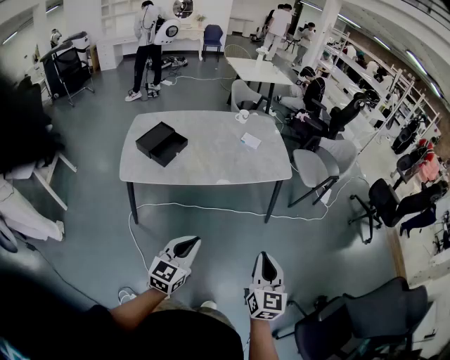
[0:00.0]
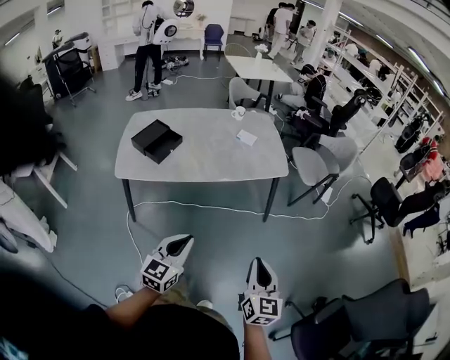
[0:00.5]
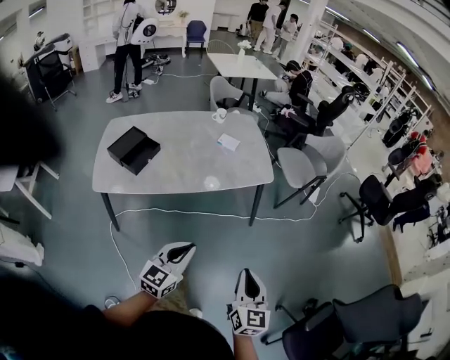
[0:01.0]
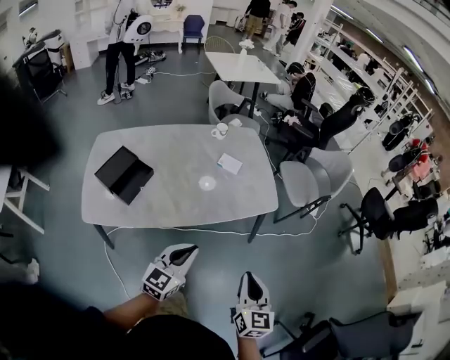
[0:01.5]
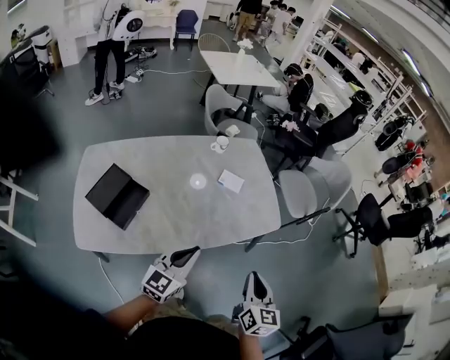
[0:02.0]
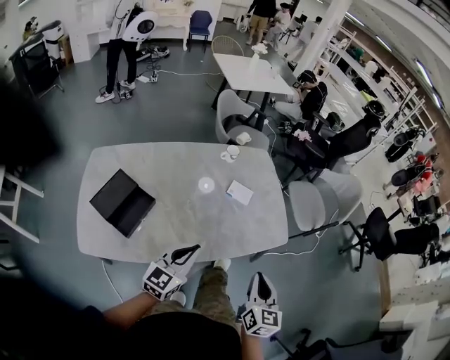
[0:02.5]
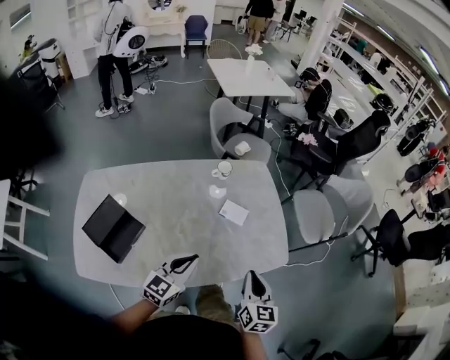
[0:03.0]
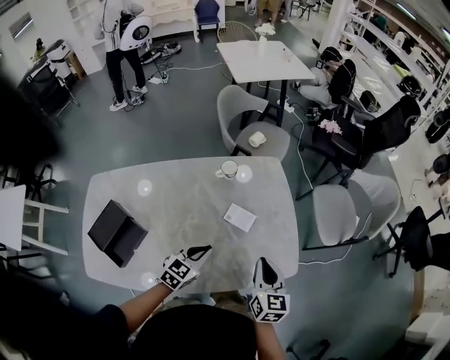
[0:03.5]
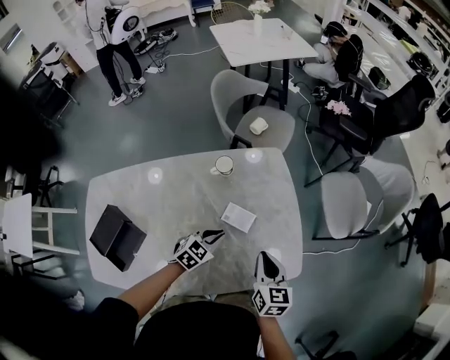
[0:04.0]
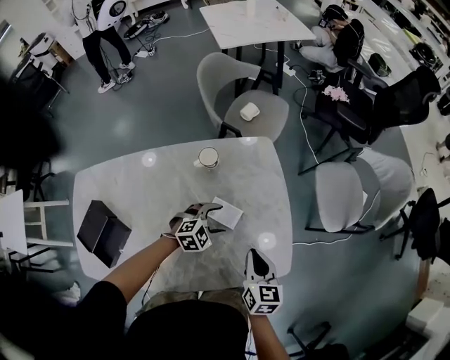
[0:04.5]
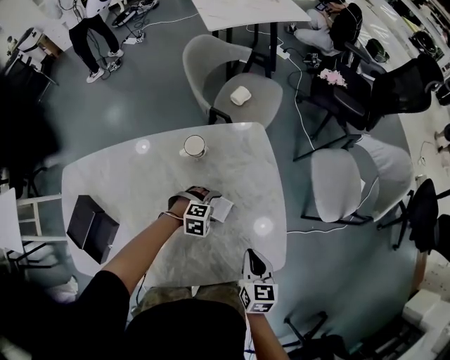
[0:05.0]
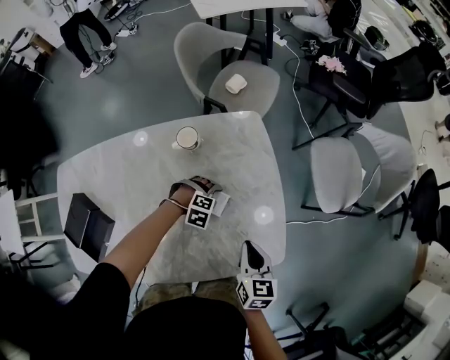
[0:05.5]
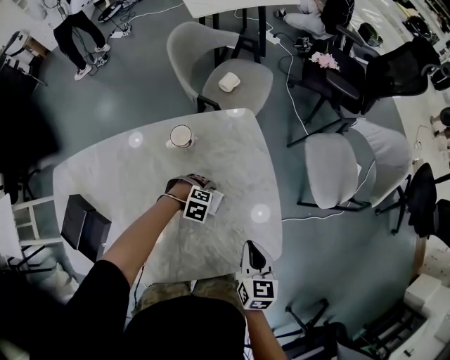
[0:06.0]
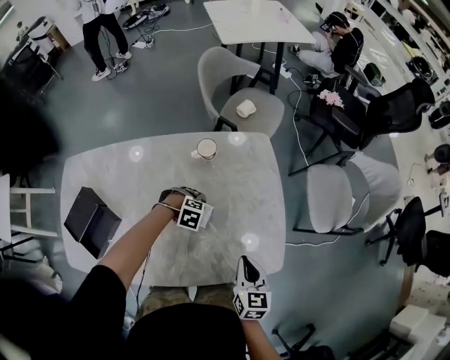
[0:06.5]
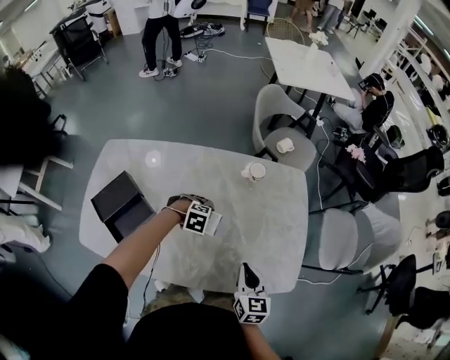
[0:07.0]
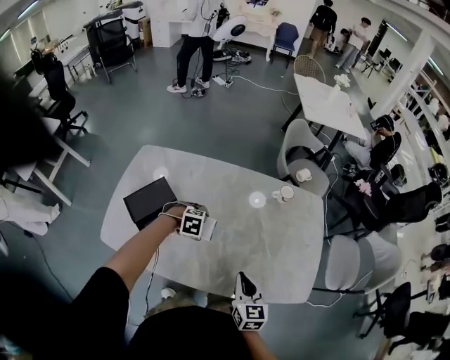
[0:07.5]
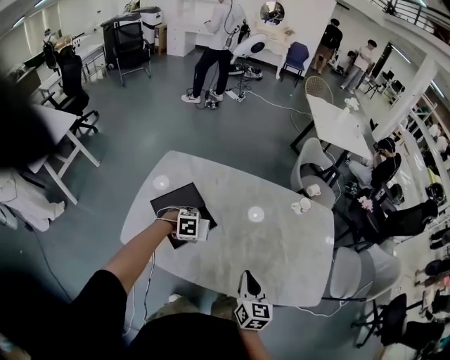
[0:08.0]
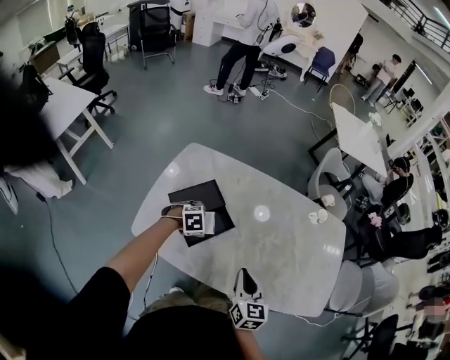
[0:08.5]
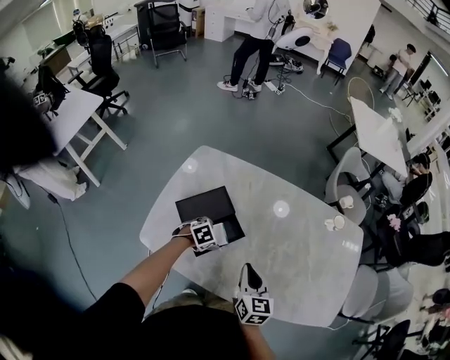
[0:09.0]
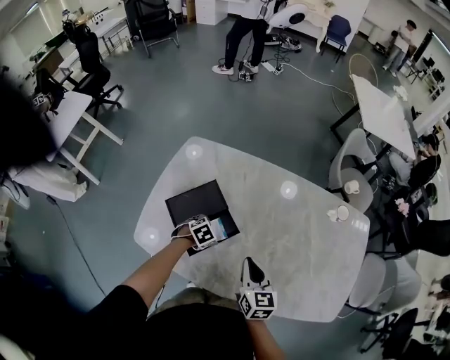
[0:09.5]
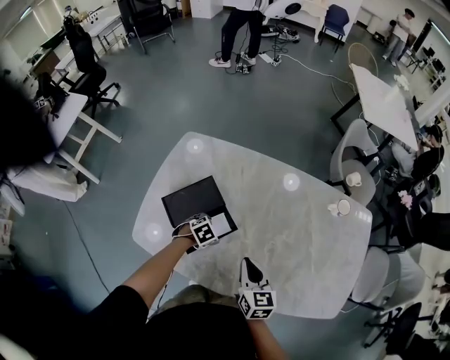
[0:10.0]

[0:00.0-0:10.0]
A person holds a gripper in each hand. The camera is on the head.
0:00.0 to 0:02.0: Both grippers are carried forward, about 40 cm.
0:02.0 to 0:04.0: Both grippers are carried forward, approximately 40 cm. The left gripper heads downward, covering approximately 25 cm, and points its fingers approximately 40 degrees further downward.
0:04.0 to 0:06.0: The right gripper travels downward by some 10 cm. The left gripper moves downward, roughly 15 cm, angles its fingers downward, by approximately 30 degrees, and opens.
0:06.0 to 0:08.0: The two grippers travel together, approximately 50 cm. The left gripper rolls counterclockwise, seen from behind, by approximately 40 degrees; the right gripper rotates some 30 degrees.
0:08.0 to 0:10.0: The right gripper goes about 15 cm to the left, forward and downward. Meanwhile the left gripper travels downward and forward by some 15 cm, and turns by about 30 degrees.

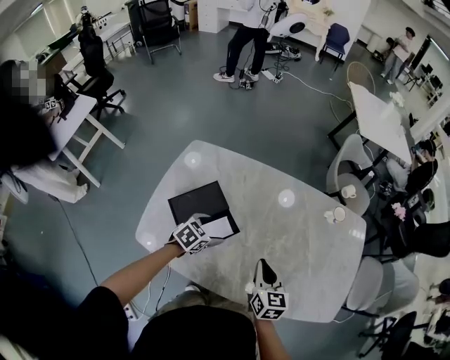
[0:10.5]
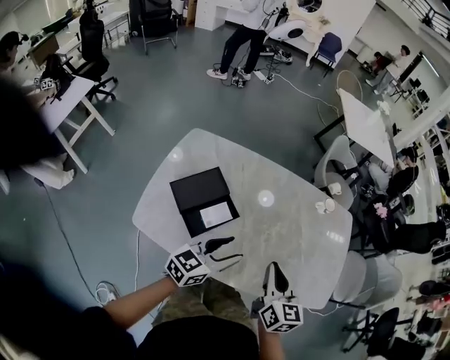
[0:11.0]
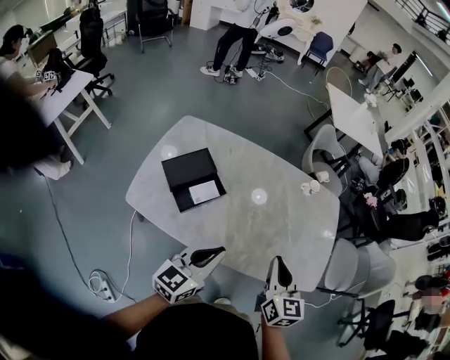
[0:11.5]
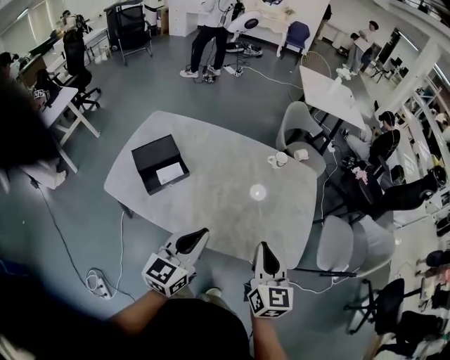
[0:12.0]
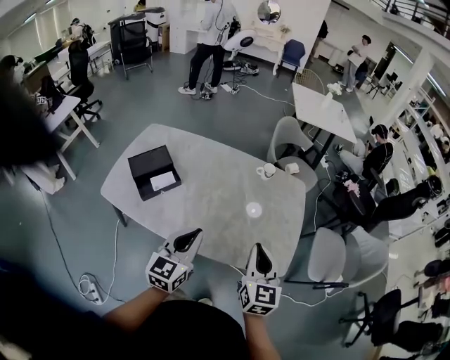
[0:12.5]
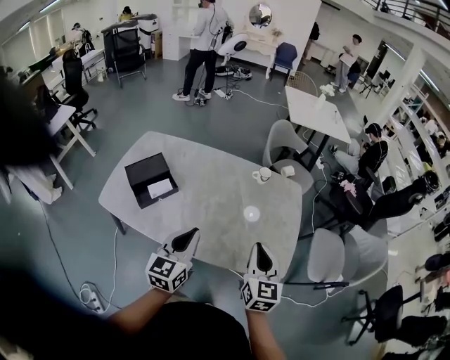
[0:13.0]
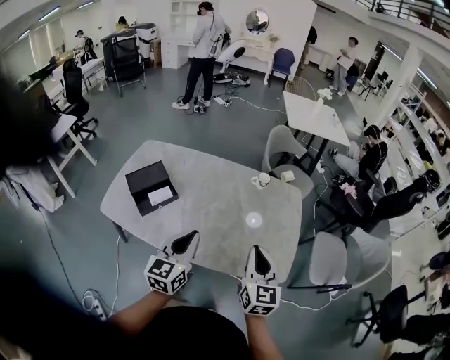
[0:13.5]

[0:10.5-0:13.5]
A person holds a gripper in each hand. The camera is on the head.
0:10.5 to 0:12.0: The right gripper shifts some 40 cm to the right, backward and upward. The left gripper travels to the right, upward and backward by some 50 cm, tilts its fingers approximately 40 degrees upward, and closes.
0:12.0 to 0:13.5: The right gripper heads to the right, covering some 5 cm.

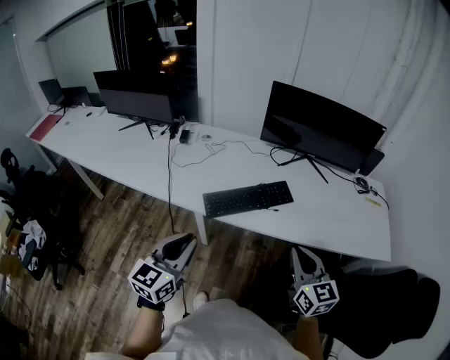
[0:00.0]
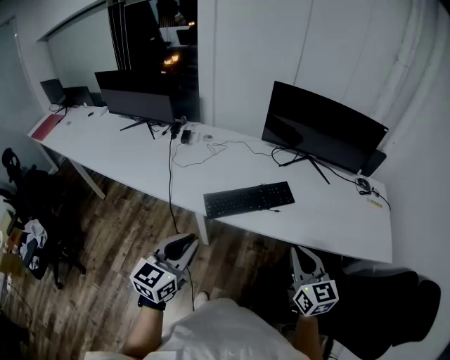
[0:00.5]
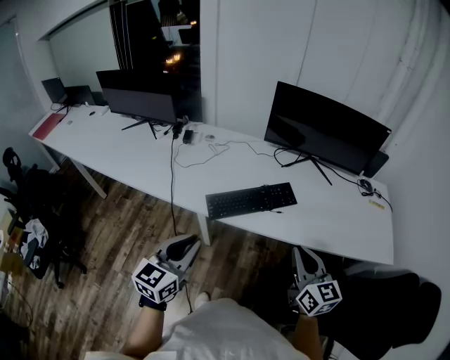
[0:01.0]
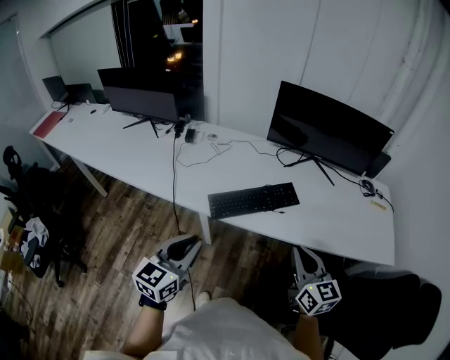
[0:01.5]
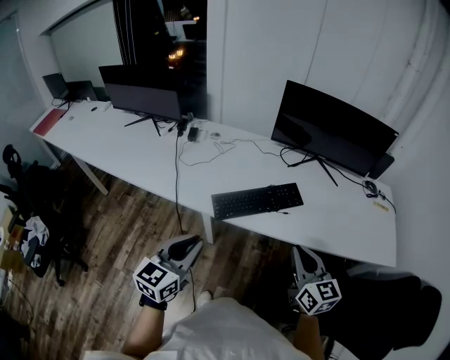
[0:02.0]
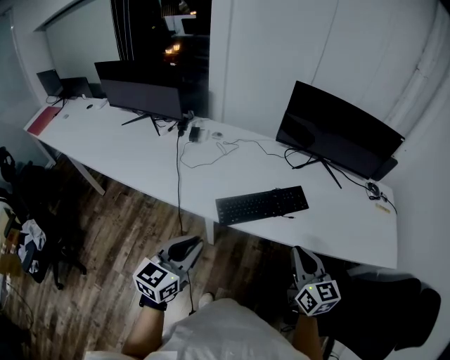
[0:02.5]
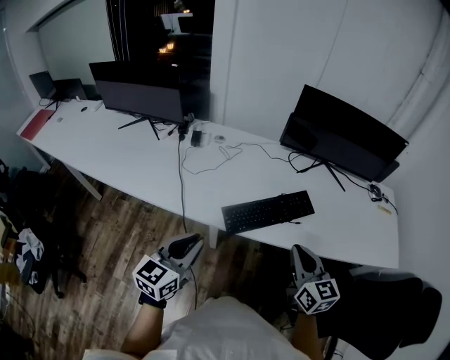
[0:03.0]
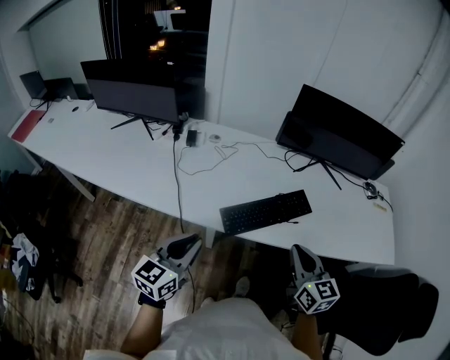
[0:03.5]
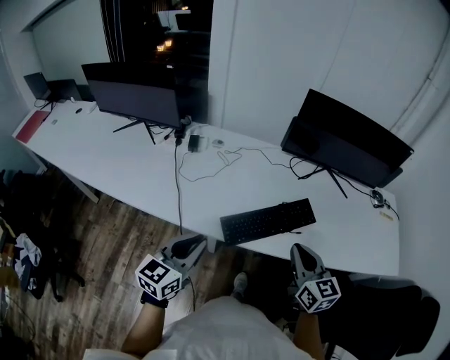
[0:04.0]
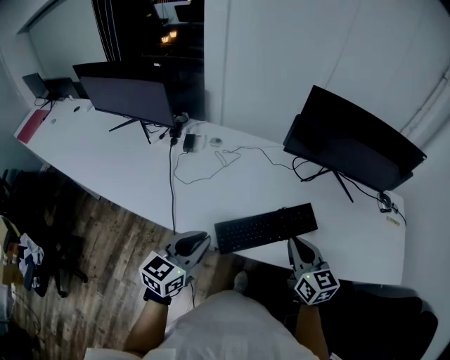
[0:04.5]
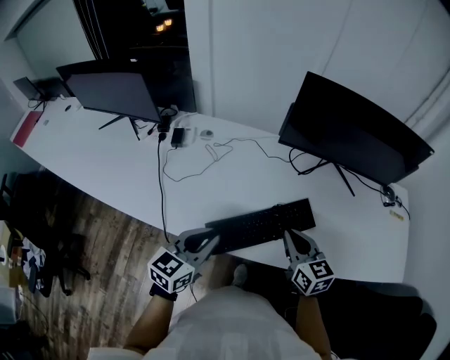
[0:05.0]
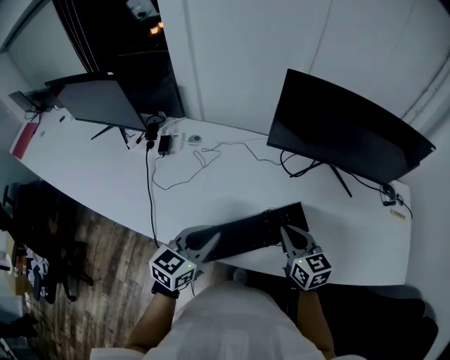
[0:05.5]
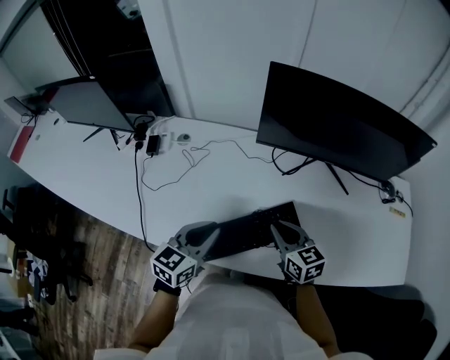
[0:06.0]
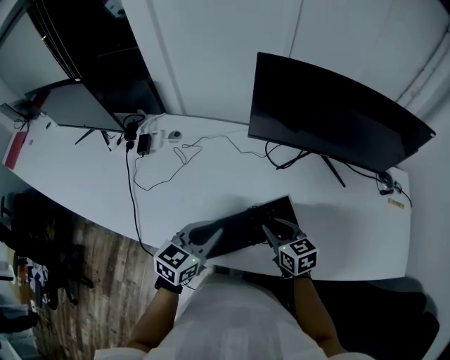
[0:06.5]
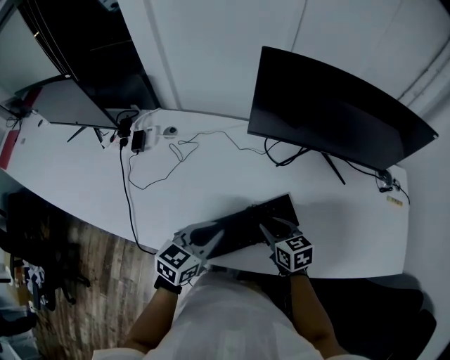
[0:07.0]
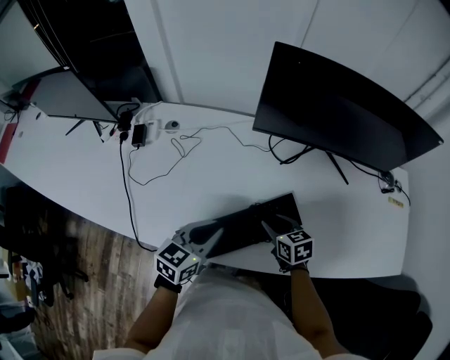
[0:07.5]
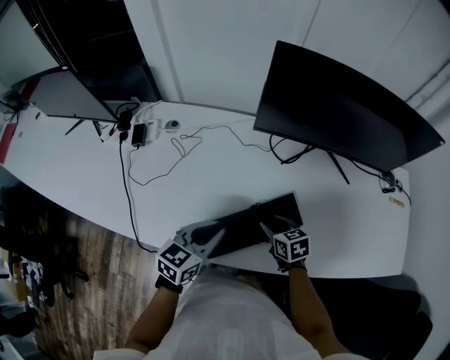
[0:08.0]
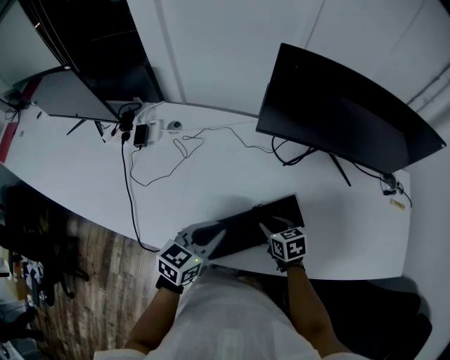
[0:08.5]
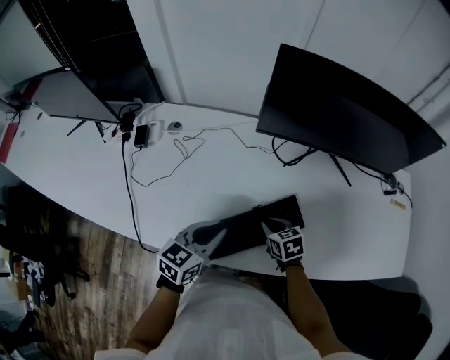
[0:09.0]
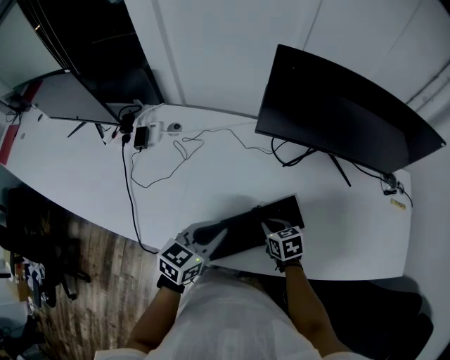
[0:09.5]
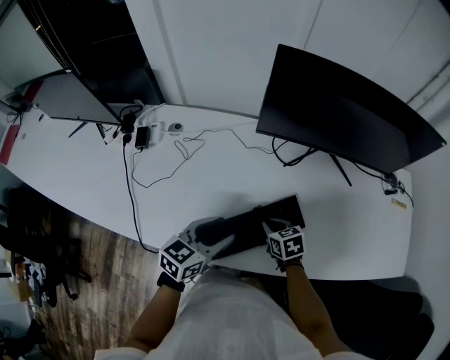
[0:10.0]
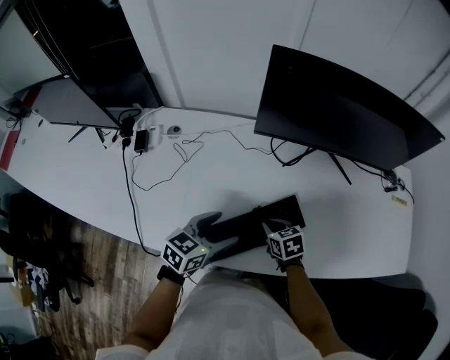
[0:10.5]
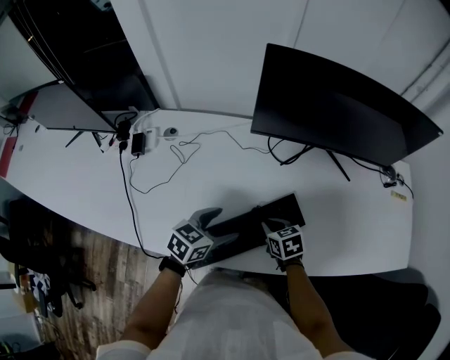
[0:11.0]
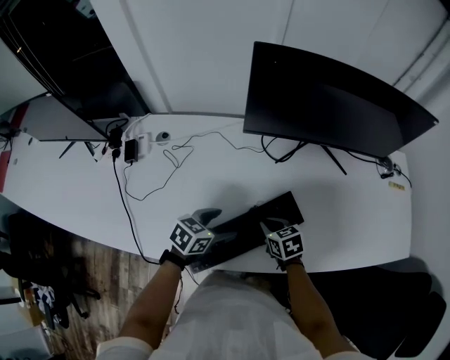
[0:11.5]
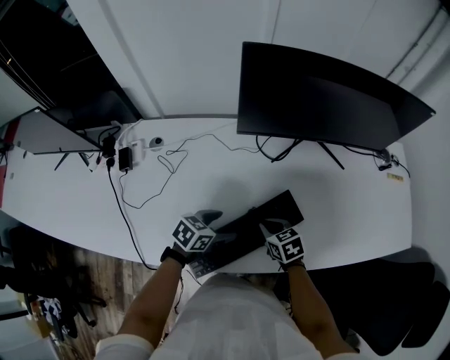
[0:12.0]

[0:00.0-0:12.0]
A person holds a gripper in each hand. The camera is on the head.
0:00.0 to 0:02.0: The grippers make only small movements.
0:02.0 to 0:04.0: The grippers both shift forward and to the left by some 15 cm.
0:04.0 to 0:06.0: The right gripper heads forward and downward, covering approximately 25 cm; the left gripper shifts roughly 25 cm forward and to the right.
0:06.0 to 0:08.0: The left gripper moves downward, some 5 cm. The right gripper goes some 15 cm downward, swivels some 20 degrees, and opens up.
0:08.0 to 0:10.0: The right gripper closes up, while the left gripper opens up.
0:10.0 to 0:12.0: The left gripper travels downward by roughly 10 cm, rotates some 30 degrees, and opens up.

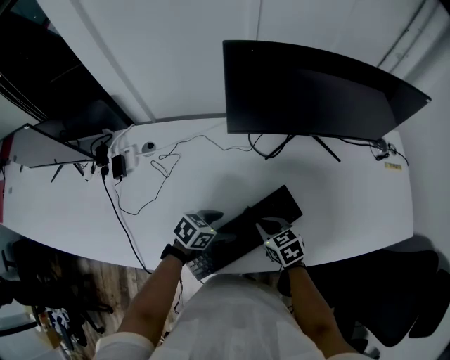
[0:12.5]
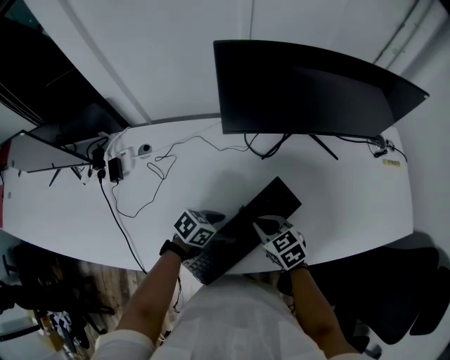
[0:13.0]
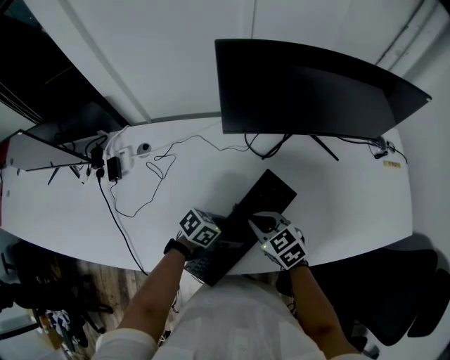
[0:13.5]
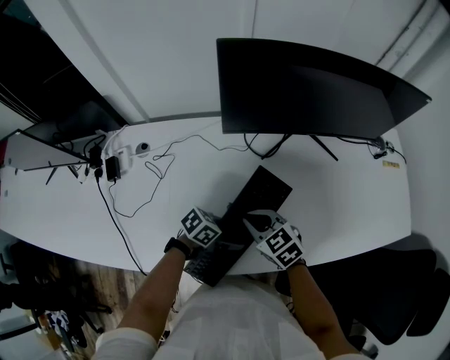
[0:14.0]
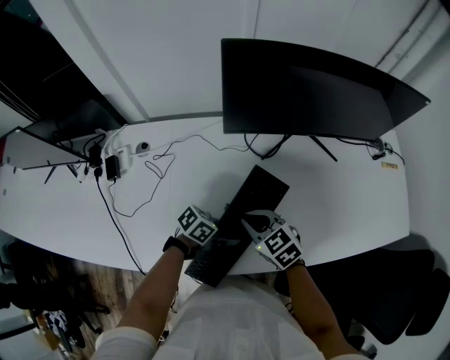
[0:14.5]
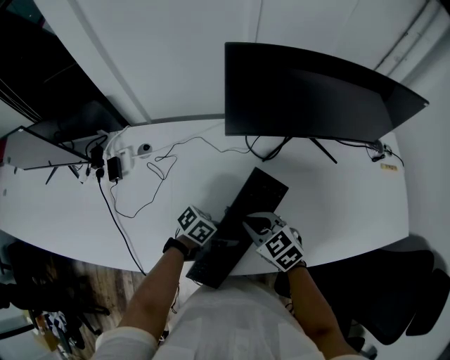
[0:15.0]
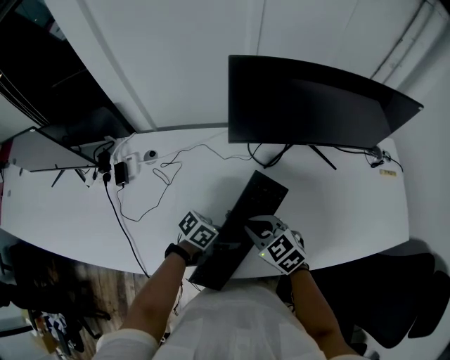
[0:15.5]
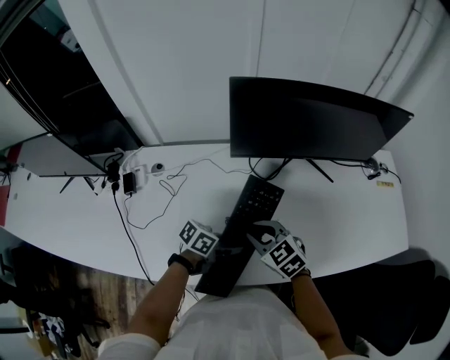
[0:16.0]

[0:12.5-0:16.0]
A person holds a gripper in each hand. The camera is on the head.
0:12.5 to 0:14.5: The right gripper goes roughly 5 cm upward. Meanwhile the left gripper rotates roughly 20 degrees, and closes up.
0:14.5 to 0:16.0: The grippers both shift upward by approximately 5 cm.
